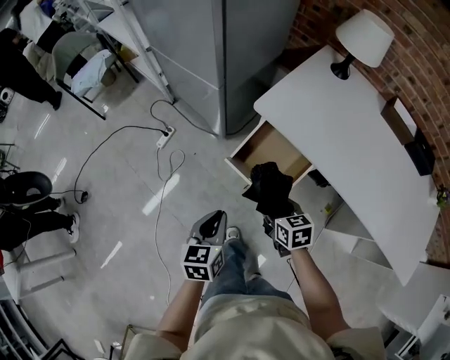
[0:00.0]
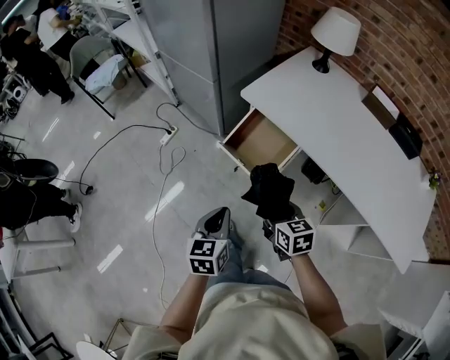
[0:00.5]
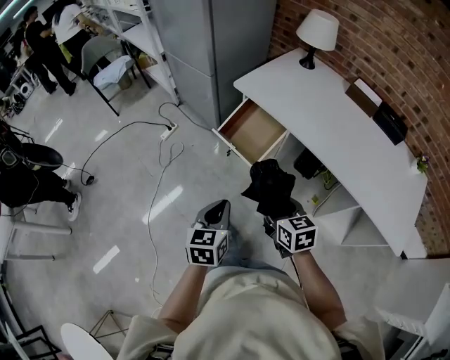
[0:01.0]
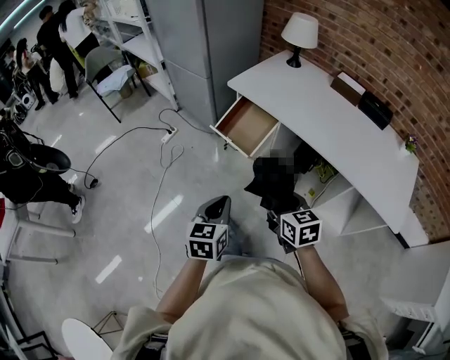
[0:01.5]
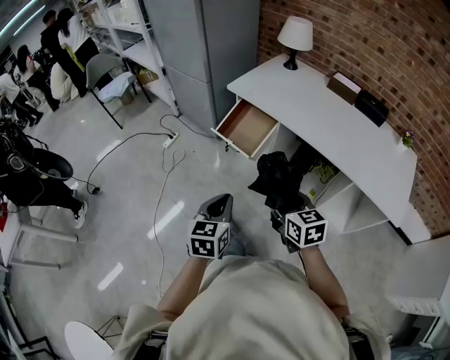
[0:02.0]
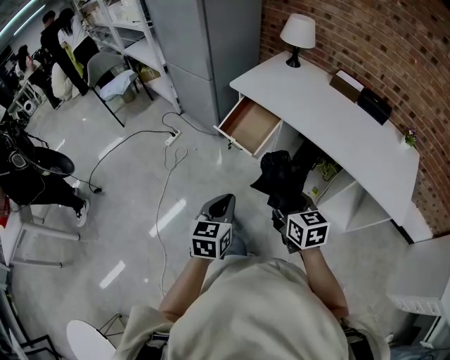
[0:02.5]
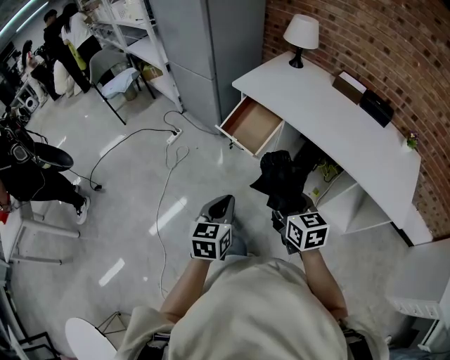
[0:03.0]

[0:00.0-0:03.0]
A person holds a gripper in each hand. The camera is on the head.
0:00.0 to 0:01.5: The left gripper goes roughly 30 cm backward; the right gripper is displaced backward and upward by roughly 40 cm.
0:01.5 to 0:03.0: The grippers stay close to where they were, moving slightly.

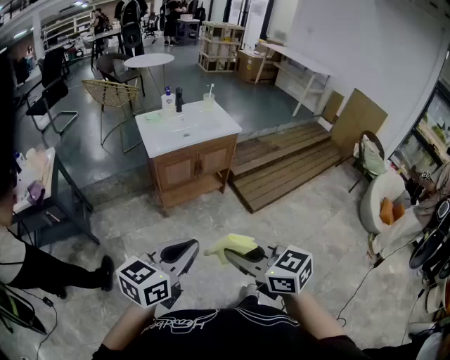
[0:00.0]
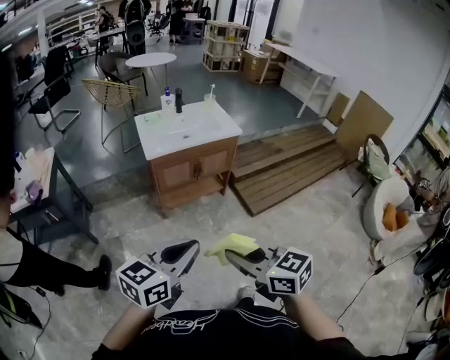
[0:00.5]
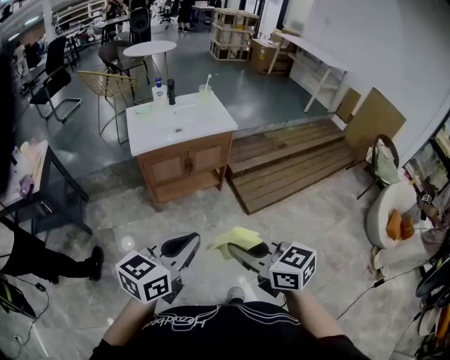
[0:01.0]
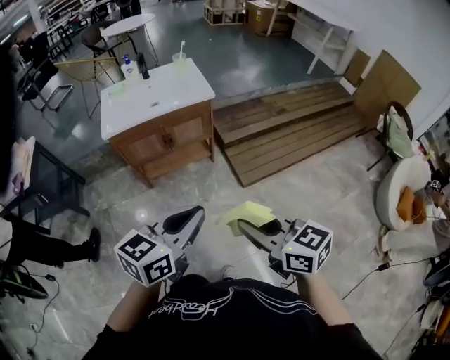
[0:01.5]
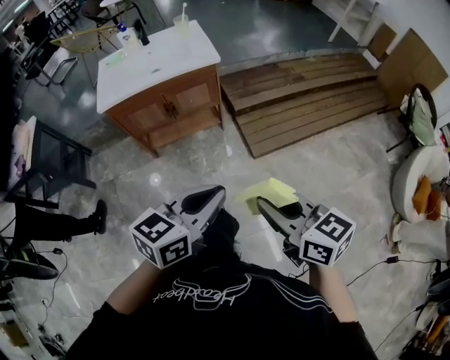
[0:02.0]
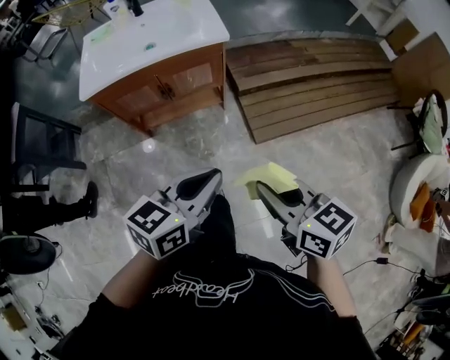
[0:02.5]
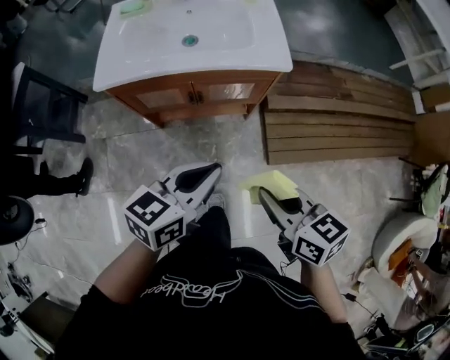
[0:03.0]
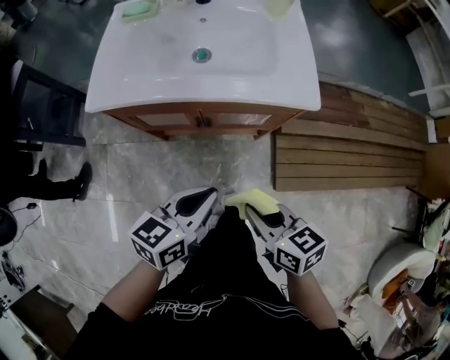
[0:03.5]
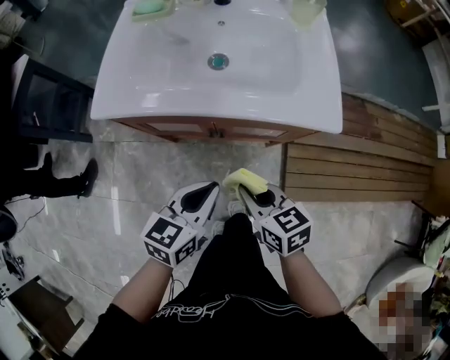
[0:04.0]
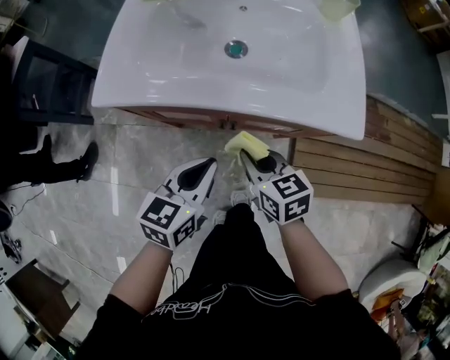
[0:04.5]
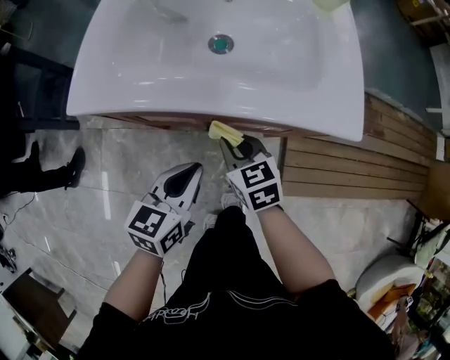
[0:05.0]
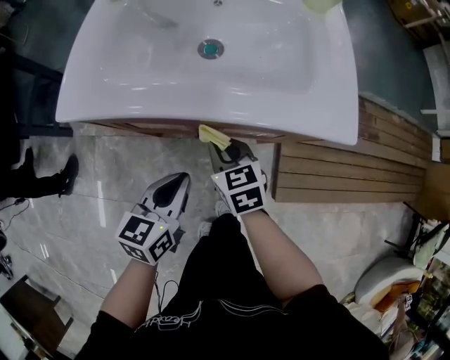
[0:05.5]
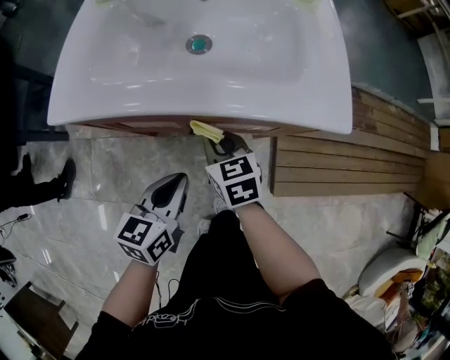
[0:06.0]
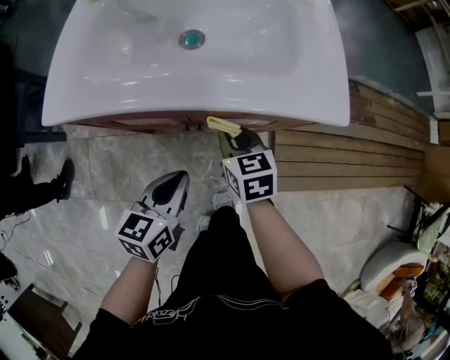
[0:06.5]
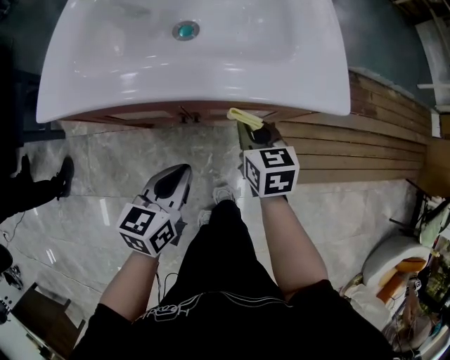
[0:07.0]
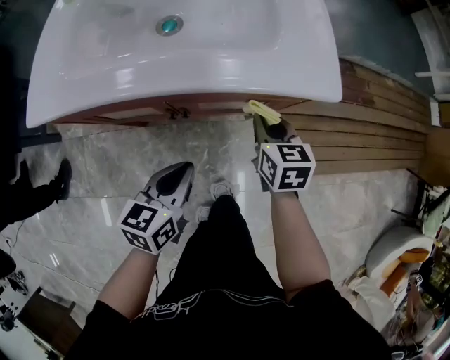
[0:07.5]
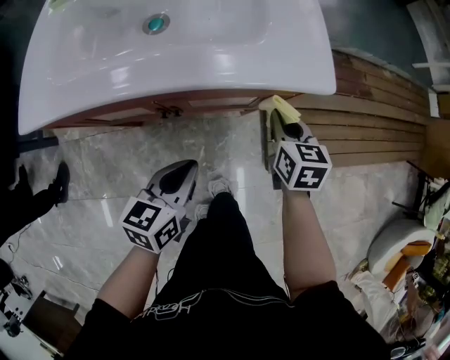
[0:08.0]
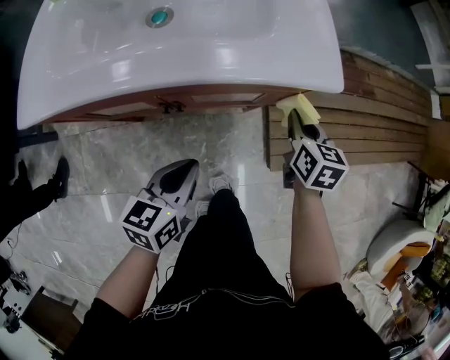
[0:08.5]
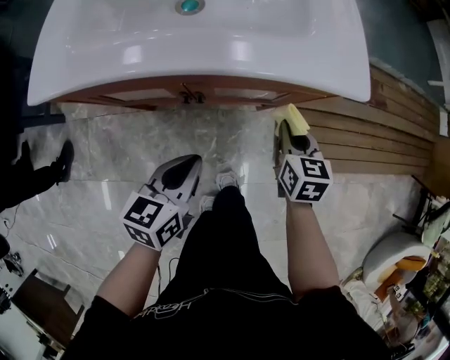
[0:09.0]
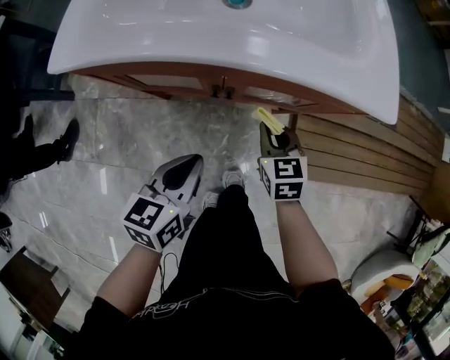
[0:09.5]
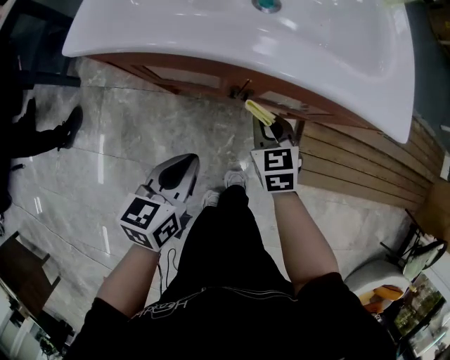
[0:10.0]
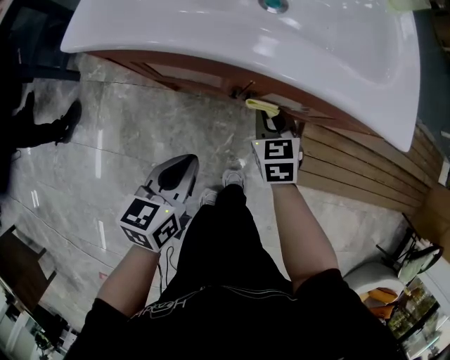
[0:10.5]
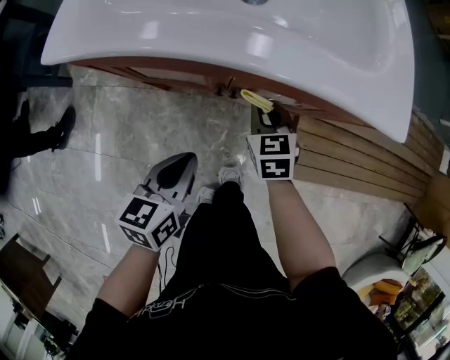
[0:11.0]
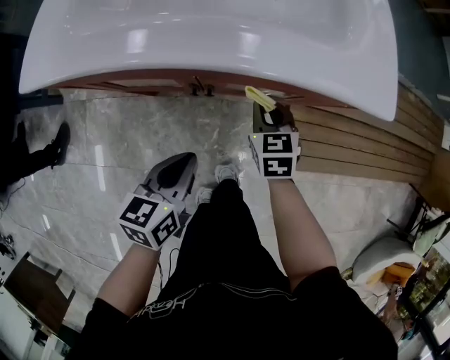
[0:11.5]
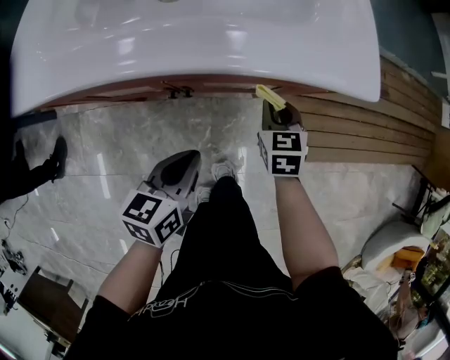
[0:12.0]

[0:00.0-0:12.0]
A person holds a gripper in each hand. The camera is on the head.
0:00.0 to 0:02.0: The two grippers travel together, to the right and forward, approximately 40 cm.
0:02.0 to 0:04.0: The pair of grippers is taken forward, roughly 50 cm. The grippers both shift downward by roughly 25 cm. The right gripper turns by some 30 degrees; the left gripper swivels roughly 30 degrees.
0:04.0 to 0:06.0: The right gripper shifts roughly 15 cm forward and downward, while the left gripper heads downward, covering roughly 10 cm.
0:06.0 to 0:08.0: The right gripper moves to the right, approximately 25 cm, and turns by about 30 degrees, while the left gripper shifts about 10 cm to the right.
0:08.0 to 0:10.0: The left gripper travels to the left and backward by roughly 15 cm. The right gripper travels to the left by some 20 cm, and turns by some 30 degrees.
0:10.0 to 0:12.0: The grippers both shift to the right by roughly 15 cm. The right gripper turns by roughly 20 degrees.

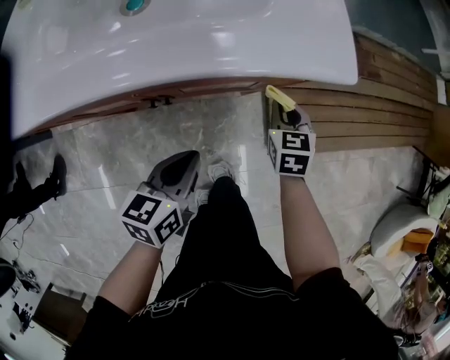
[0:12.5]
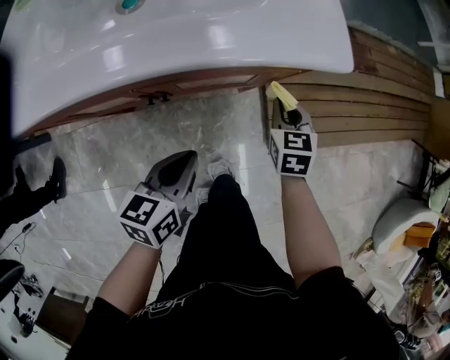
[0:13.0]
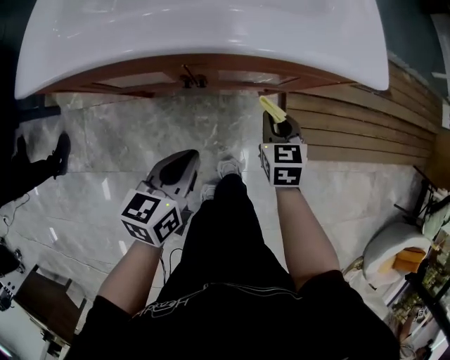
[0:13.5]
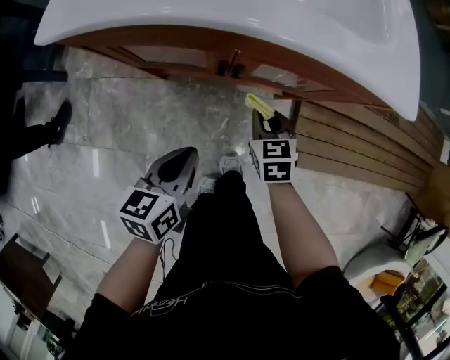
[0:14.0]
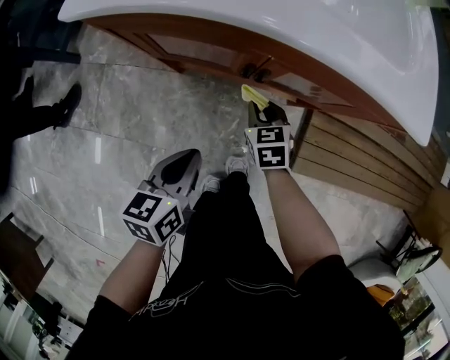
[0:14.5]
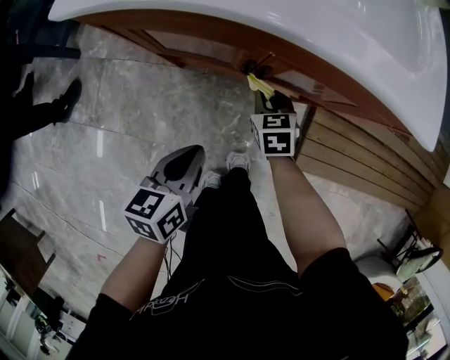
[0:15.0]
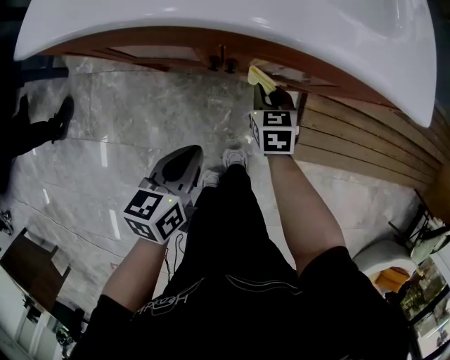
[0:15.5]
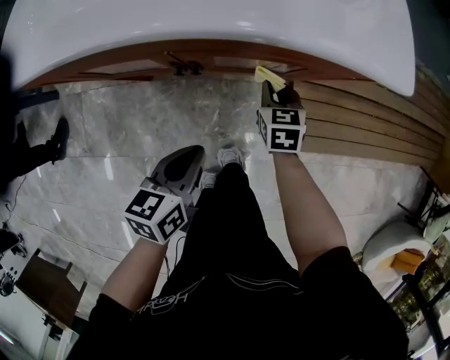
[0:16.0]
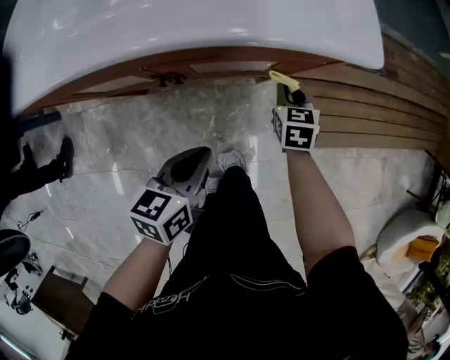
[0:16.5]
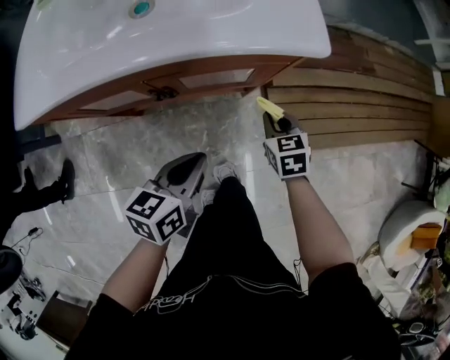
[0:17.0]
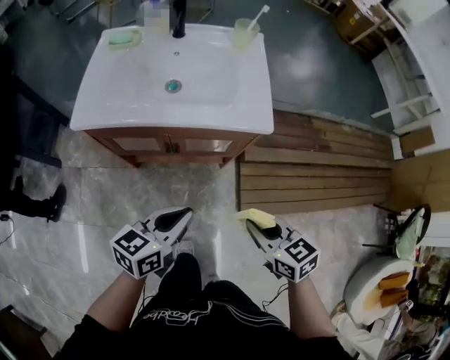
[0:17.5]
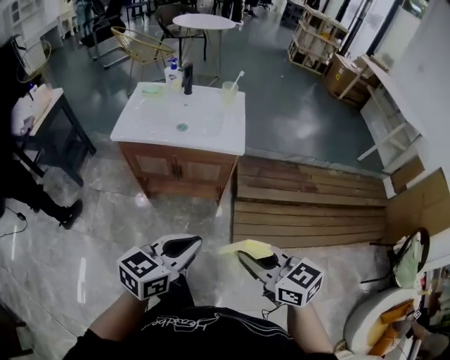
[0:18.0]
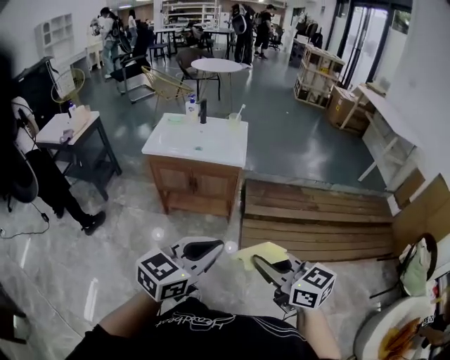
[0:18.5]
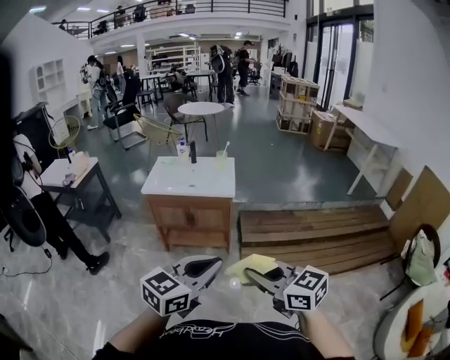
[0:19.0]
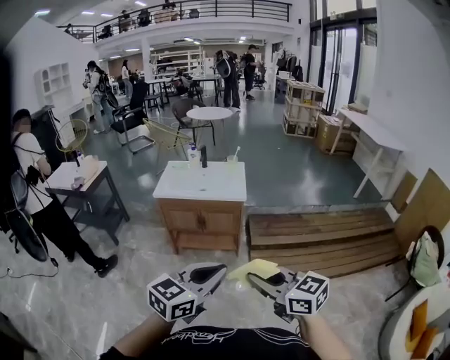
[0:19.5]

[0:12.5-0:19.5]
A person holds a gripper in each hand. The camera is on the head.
0:12.5 to 0:14.5: The right gripper changes place by about 25 cm, and turns by approximately 30 degrees. Meanwhile the left gripper ends up about 15 cm from where it was, and turns by roughly 20 degrees.
0:14.5 to 0:16.0: The left gripper heads to the right, covering some 10 cm. The right gripper moves to the right, about 15 cm.
0:16.0 to 0:17.5: The right gripper moves upward and backward, some 40 cm, and swivels some 30 degrees, while the left gripper moves upward, roughly 25 cm, and changes its angle by approximately 20 degrees.
0:17.5 to 0:19.5: Both grippers are carried backward, some 40 cm. Both grippers move upward, roughly 35 cm. The right gripper rotates approximately 30 degrees. Meanwhile the left gripper turns by approximately 30 degrees.

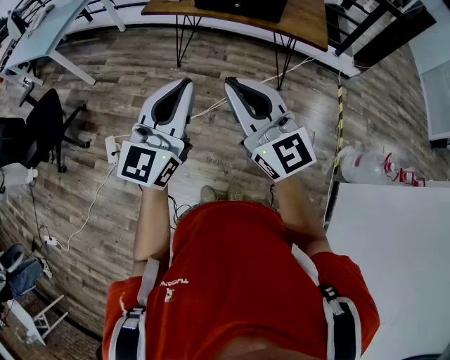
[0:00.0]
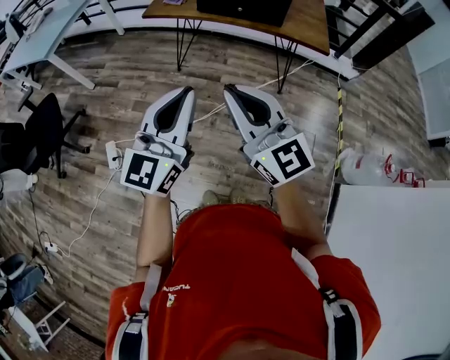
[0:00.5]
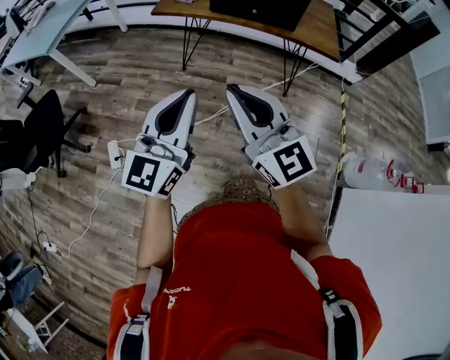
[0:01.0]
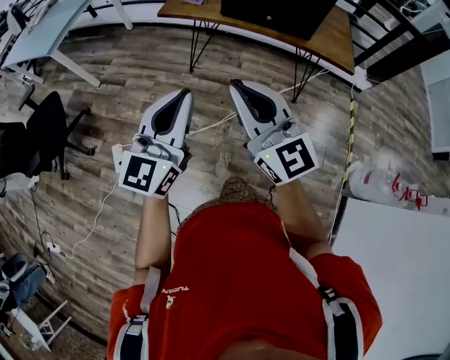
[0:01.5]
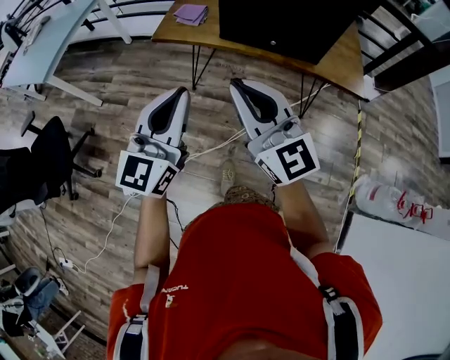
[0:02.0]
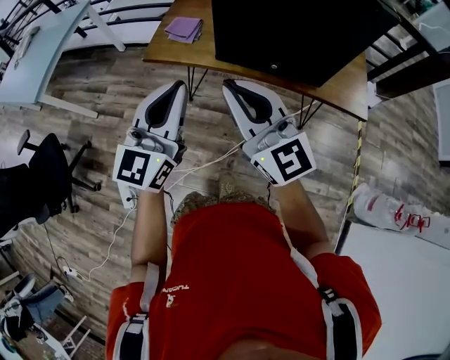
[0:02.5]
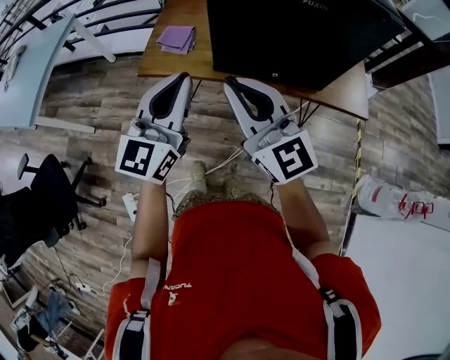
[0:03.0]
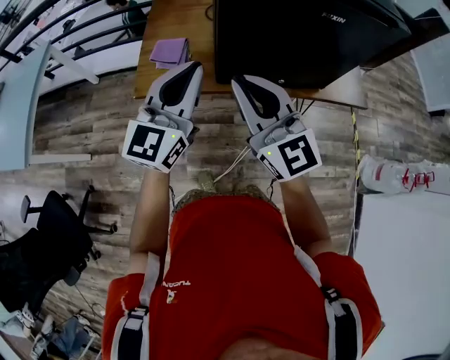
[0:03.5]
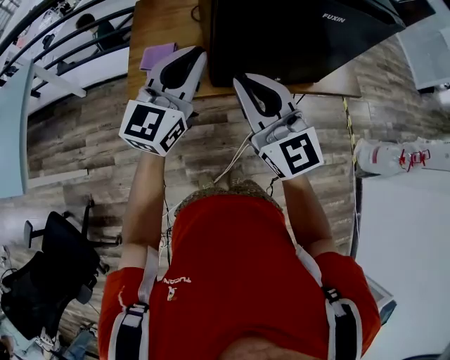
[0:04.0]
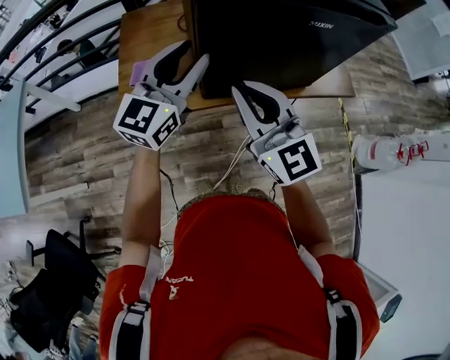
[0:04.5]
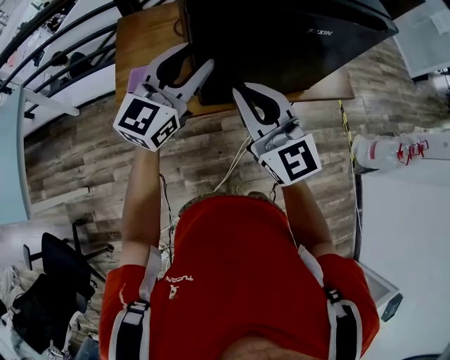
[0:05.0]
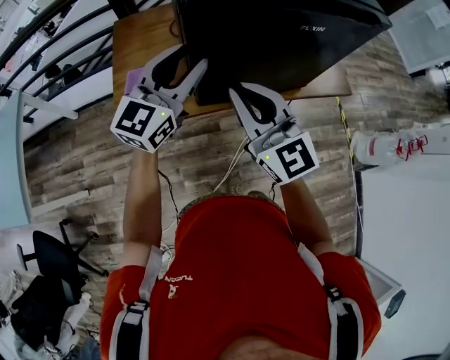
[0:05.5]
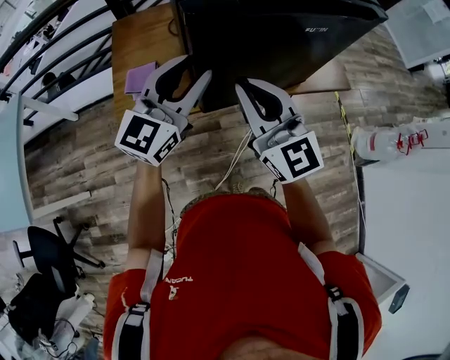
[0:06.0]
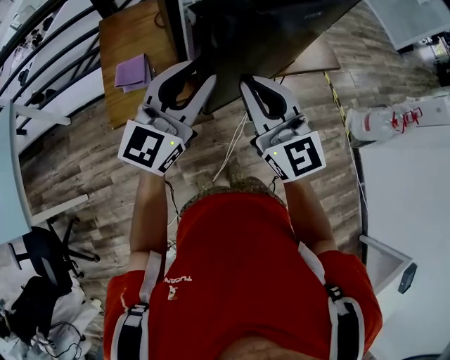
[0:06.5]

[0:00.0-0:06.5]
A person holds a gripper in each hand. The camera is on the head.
0:00.0 to 0:02.0: The two grippers go about 30 cm forward.
0:02.0 to 0:04.5: The right gripper moves roughly 30 cm, and changes its angle by about 30 degrees; the left gripper moves roughly 40 cm, changes its angle by approximately 30 degrees, and opens up.
0:04.5 to 0:06.5: The left gripper shifts about 10 cm backward and to the right, while the right gripper travels to the right by roughly 5 cm.
